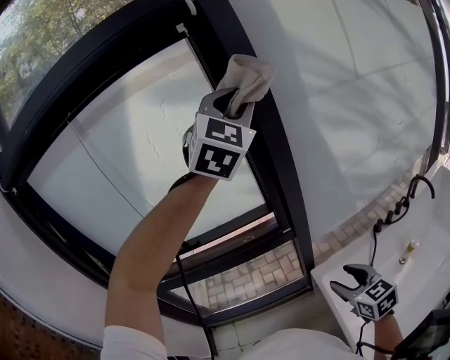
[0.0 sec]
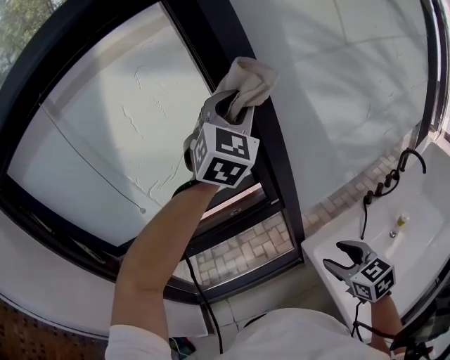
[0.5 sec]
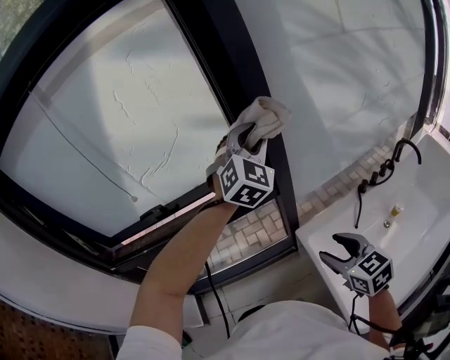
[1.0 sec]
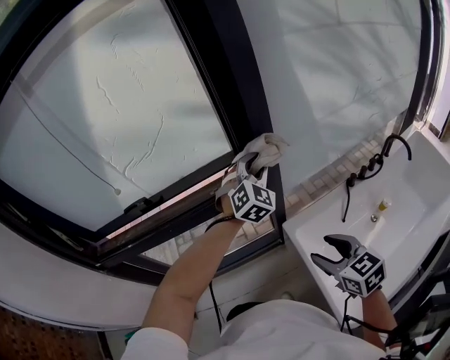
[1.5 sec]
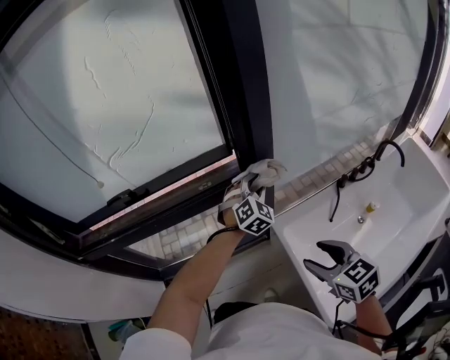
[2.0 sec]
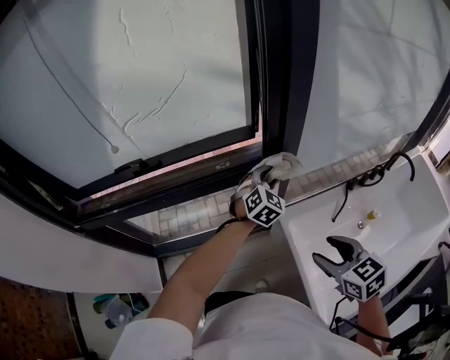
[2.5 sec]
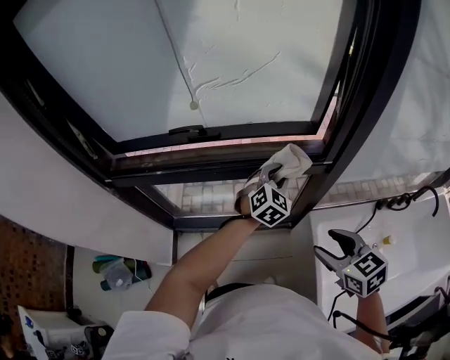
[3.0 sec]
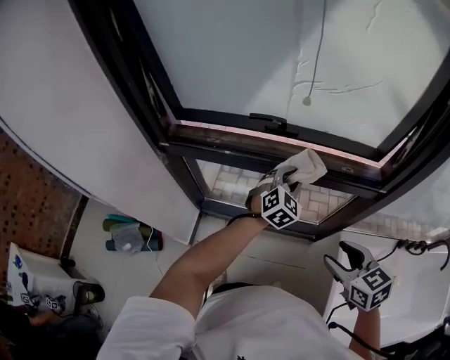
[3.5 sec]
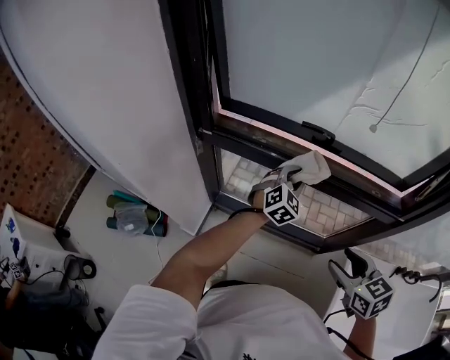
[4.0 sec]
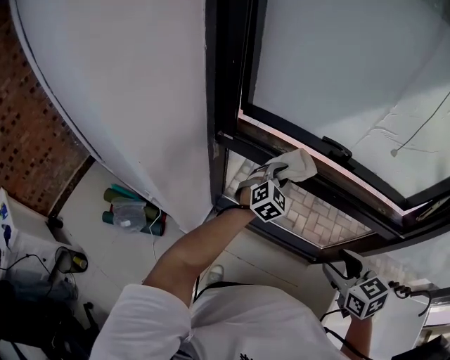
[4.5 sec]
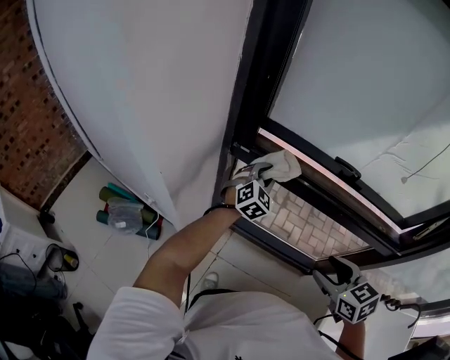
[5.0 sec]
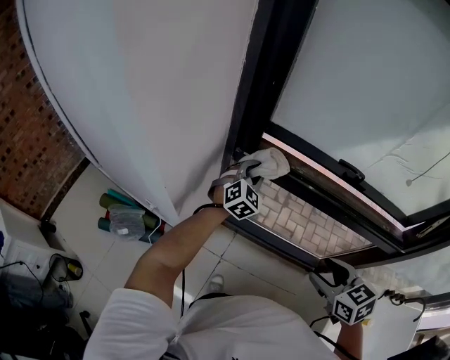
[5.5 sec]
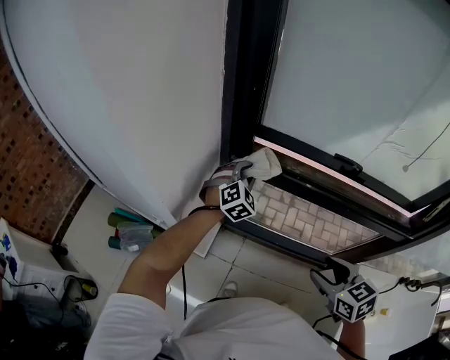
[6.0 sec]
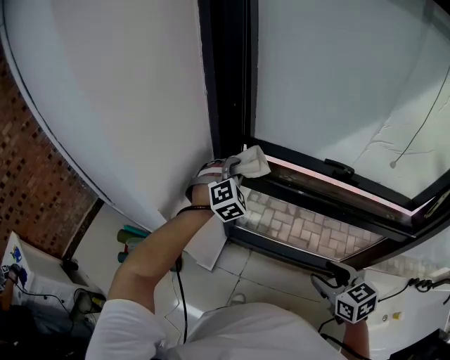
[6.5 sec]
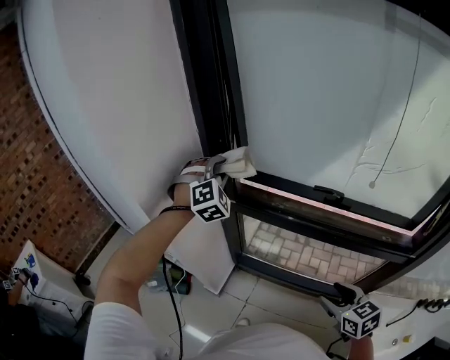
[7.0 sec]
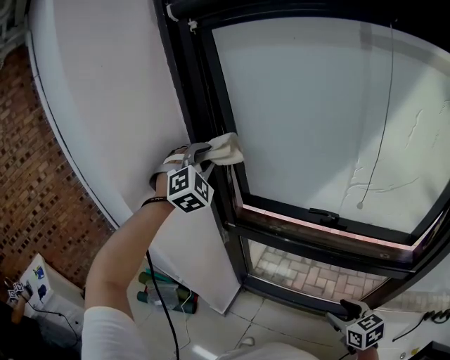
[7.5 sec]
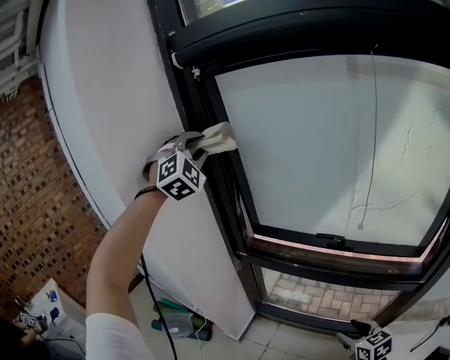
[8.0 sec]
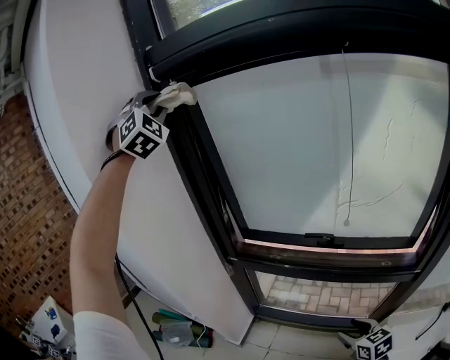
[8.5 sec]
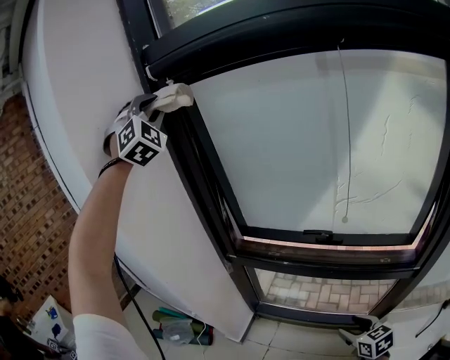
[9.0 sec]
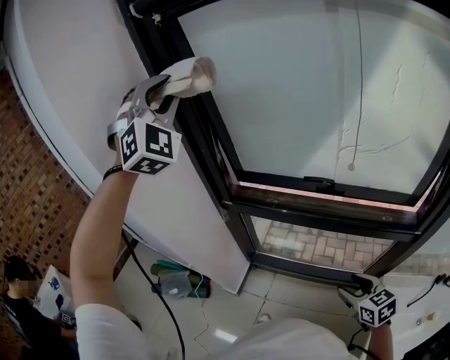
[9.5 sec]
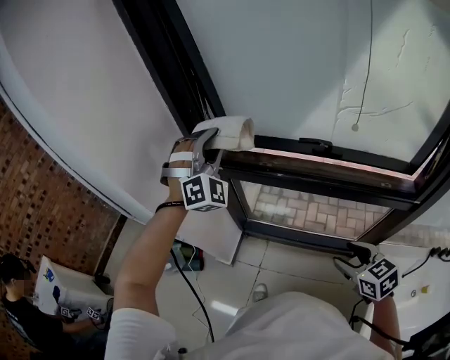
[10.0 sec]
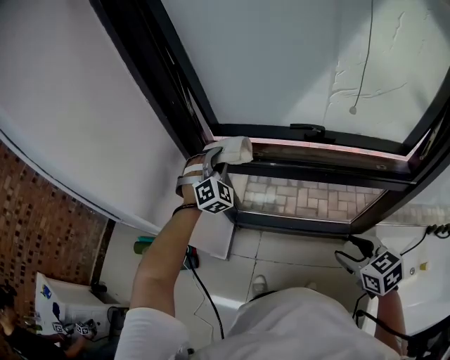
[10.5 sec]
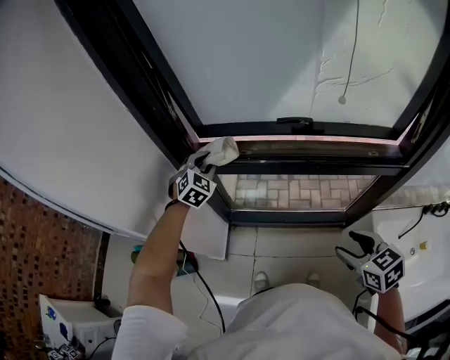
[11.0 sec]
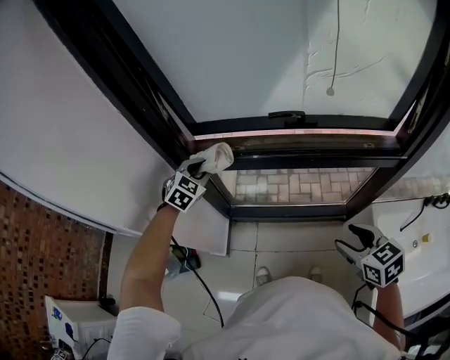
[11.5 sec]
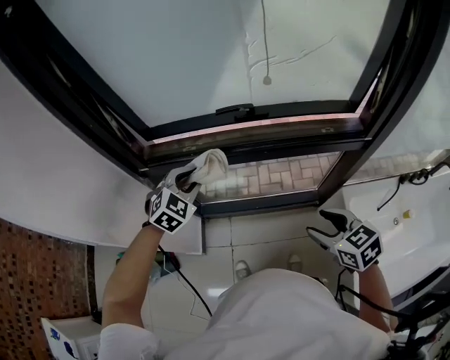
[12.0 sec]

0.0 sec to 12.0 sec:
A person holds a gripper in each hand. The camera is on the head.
0.0 sec to 2.0 sec: The right gripper ends up roughly 5 cm from where it was. The left gripper heads downward, covering some 50 cm, and rotates some 30 degrees.
2.0 sec to 4.0 sec: The left gripper is displaced to the left by approximately 50 cm, and swivels approximately 30 degrees. Meanwhile the right gripper goes some 30 cm to the left, and changes its angle by about 30 degrees.
4.0 sec to 6.0 sec: The left gripper moves to the left, about 30 cm, while the right gripper goes some 15 cm to the left.
6.0 sec to 8.0 sec: The left gripper shifts about 50 cm upward, and rotates approximately 40 degrees, while the right gripper is displaced to the right by about 15 cm.
8.0 sec to 10.0 sec: The left gripper goes roughly 25 cm downward.
10.0 sec to 12.0 sec: The left gripper goes about 25 cm downward and to the right, and points its fingers approximately 30 degrees further downward.

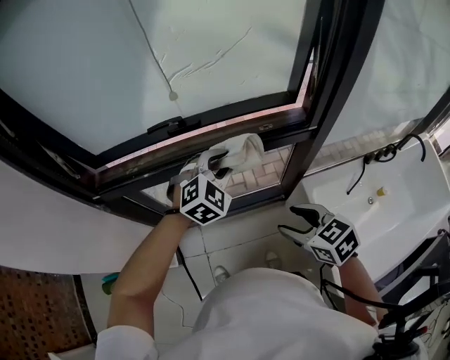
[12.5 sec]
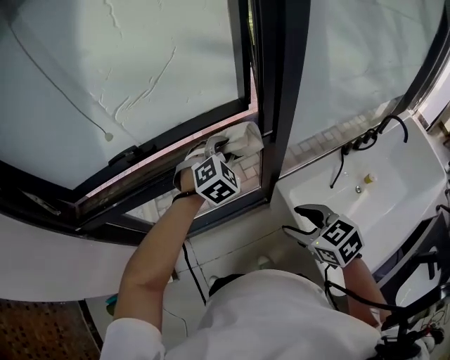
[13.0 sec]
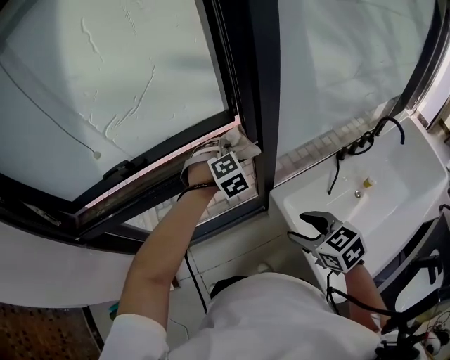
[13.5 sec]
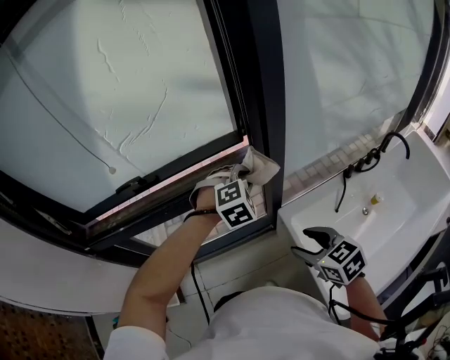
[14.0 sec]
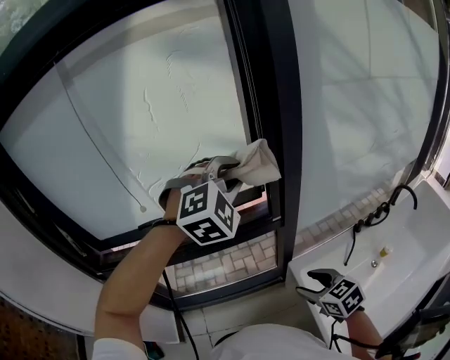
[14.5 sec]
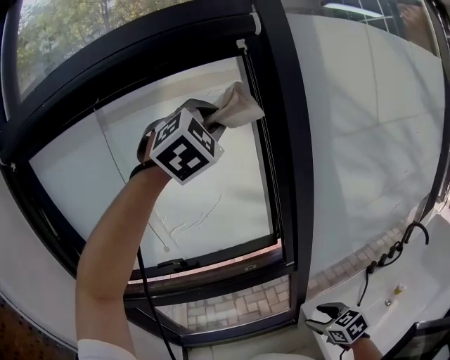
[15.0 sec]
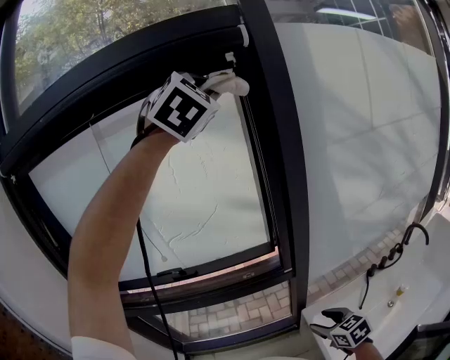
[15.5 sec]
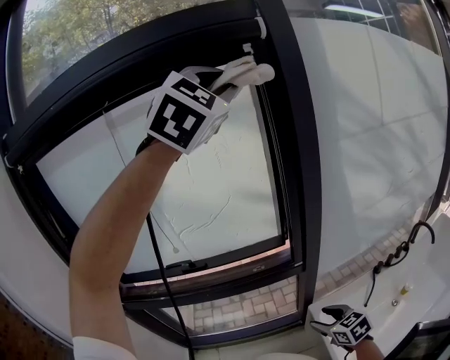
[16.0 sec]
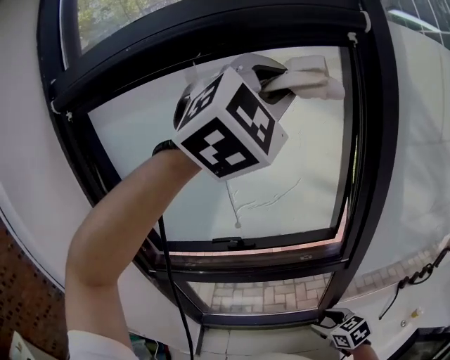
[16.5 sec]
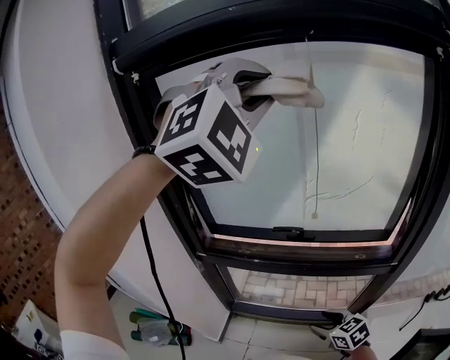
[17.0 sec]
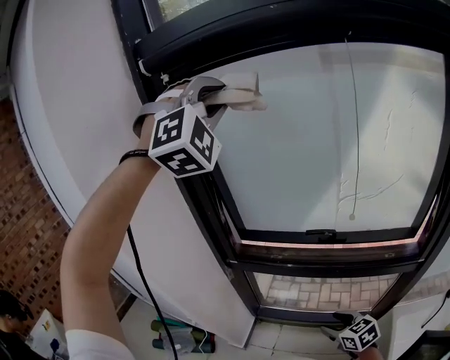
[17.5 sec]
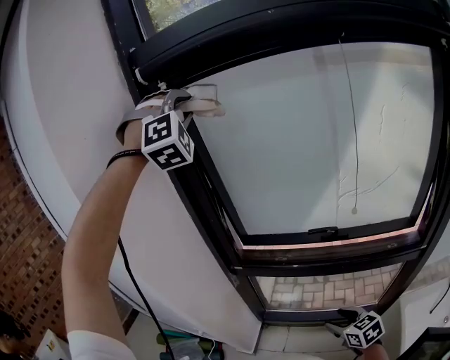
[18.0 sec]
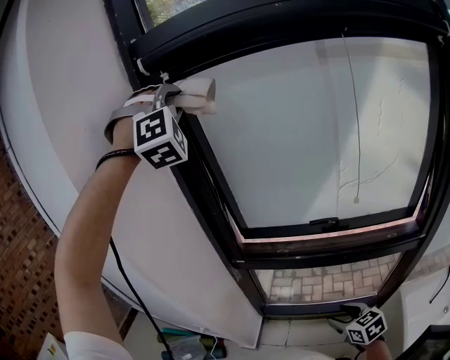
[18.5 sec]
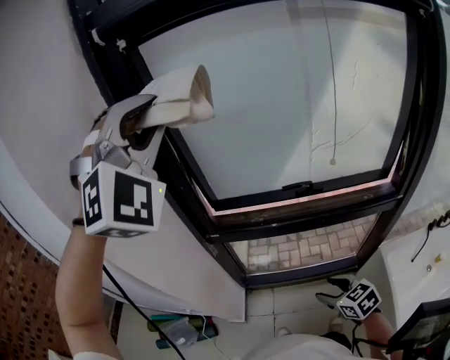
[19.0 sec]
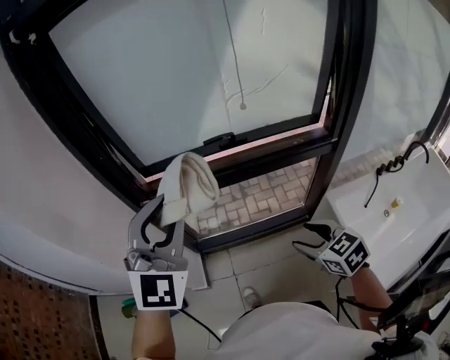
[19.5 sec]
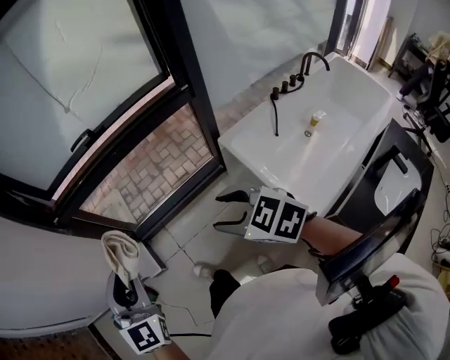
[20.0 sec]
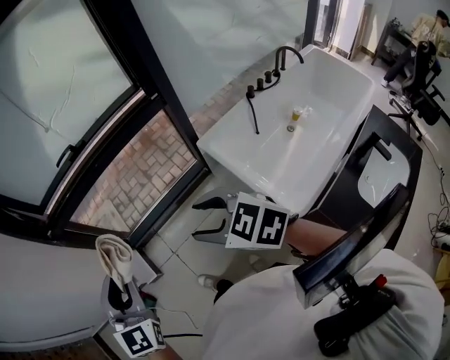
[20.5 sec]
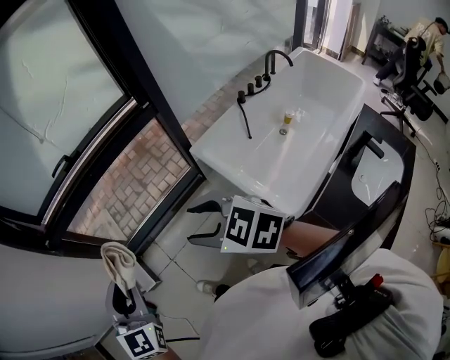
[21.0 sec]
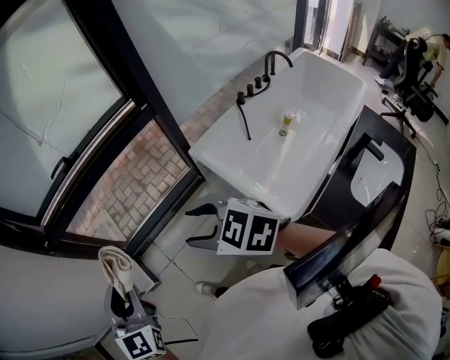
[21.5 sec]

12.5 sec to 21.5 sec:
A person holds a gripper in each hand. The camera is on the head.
12.5 sec to 14.5 sec: The left gripper travels upward and to the right by some 30 cm, and turns by roughly 30 degrees. Meanwhile the right gripper goes approximately 15 cm to the right.
14.5 sec to 17.0 sec: The right gripper is displaced to the left by some 25 cm, and rotates roughly 30 degrees. Meanwhile the left gripper heads to the left and upward, covering about 50 cm, and turns by approximately 30 degrees.
17.0 sec to 19.5 sec: The left gripper heads downward, covering roughly 30 cm, and rolls counterclockwise, seen from behind, by about 40 degrees, while the right gripper shifts by about 10 cm, and turns by approximately 20 degrees.
19.5 sec to 21.5 sec: The left gripper heads backward, downward and to the right, covering roughly 35 cm, and changes its angle by some 20 degrees; the right gripper moves backward and to the right, about 25 cm.

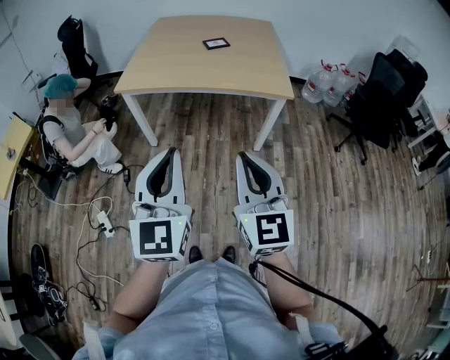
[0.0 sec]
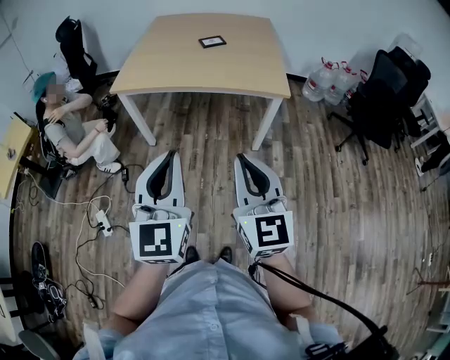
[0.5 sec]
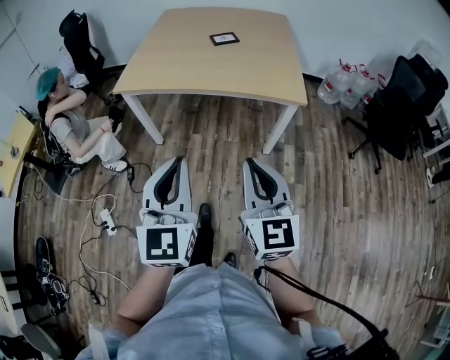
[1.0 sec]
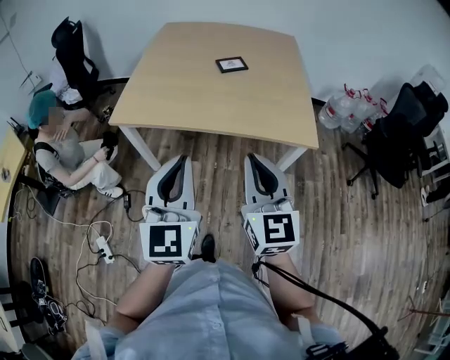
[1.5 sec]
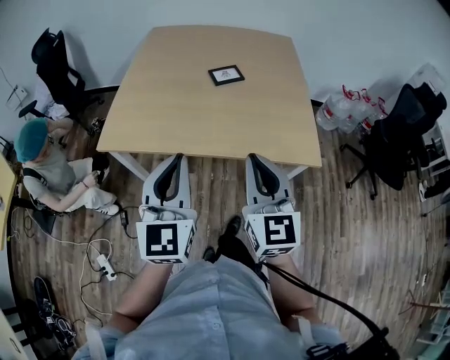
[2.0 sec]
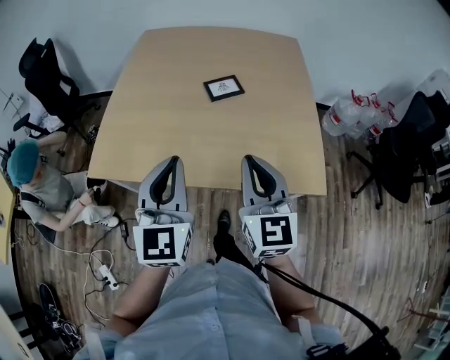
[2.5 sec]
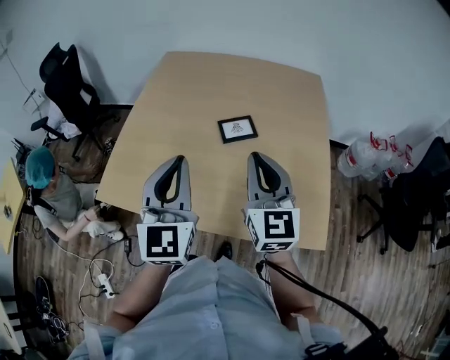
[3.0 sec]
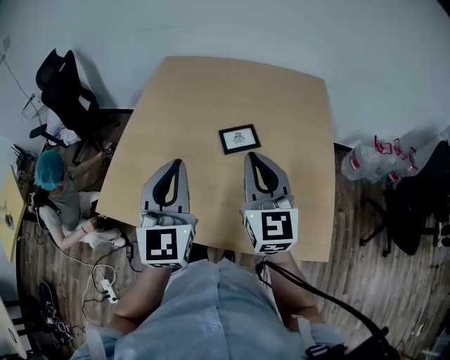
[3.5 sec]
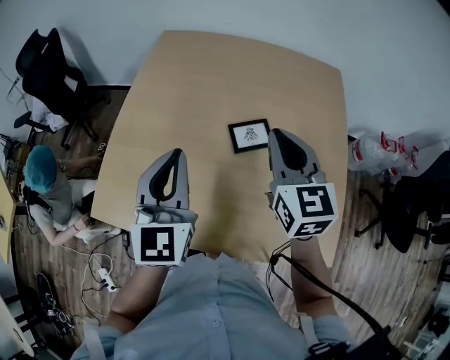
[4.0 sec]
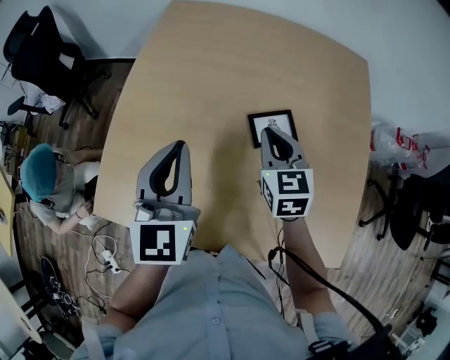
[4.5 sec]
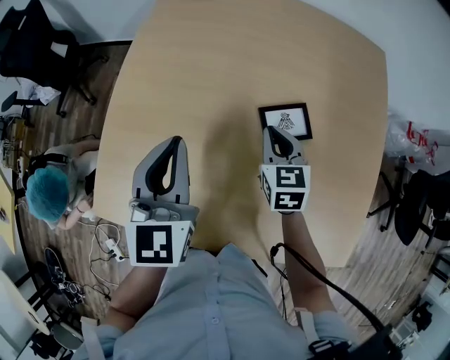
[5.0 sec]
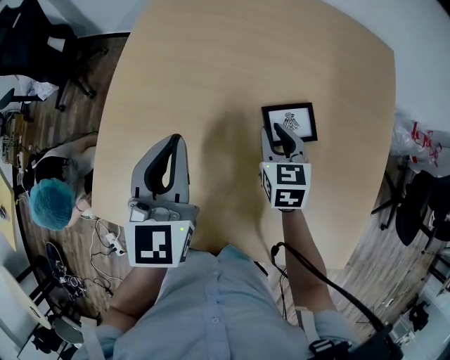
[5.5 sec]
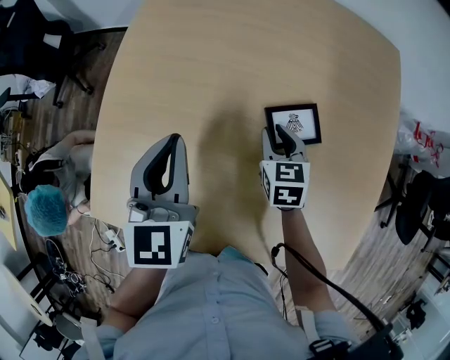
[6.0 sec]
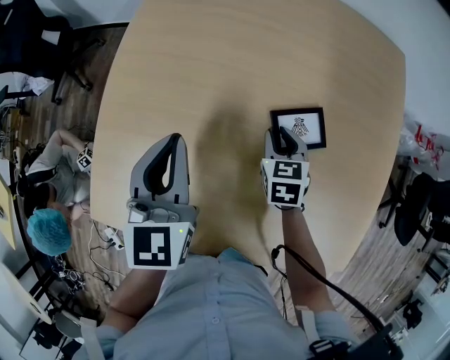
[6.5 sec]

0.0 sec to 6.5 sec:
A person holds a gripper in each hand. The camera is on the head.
0.0 sec to 2.0 sec: The grippers both shift forward by roughly 30 cm.
2.0 sec to 4.5 sec: Both grippers travel together forward, some 35 cm. The right gripper turns by some 30 degrees.
4.5 sec to 6.5 sec: The right gripper goes roughly 15 cm downward, turns by approximately 20 degrees, and opens its fingers. The left gripper goes about 5 cm downward.
